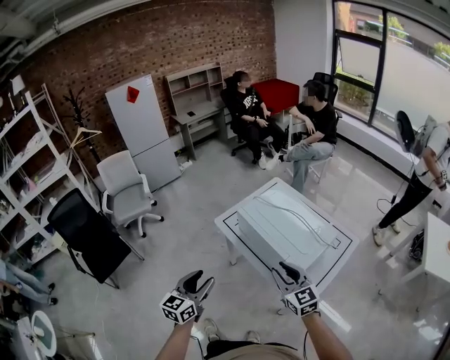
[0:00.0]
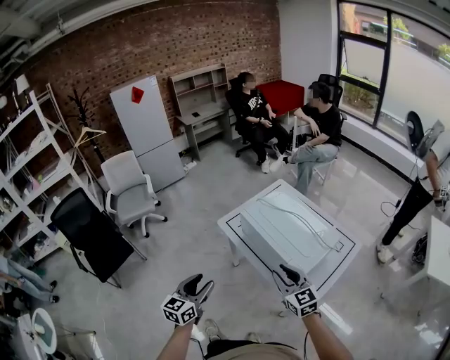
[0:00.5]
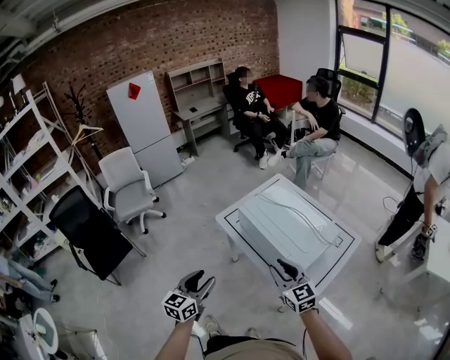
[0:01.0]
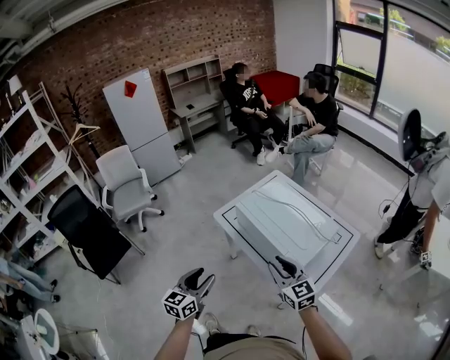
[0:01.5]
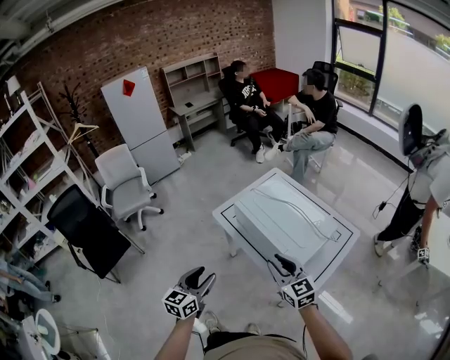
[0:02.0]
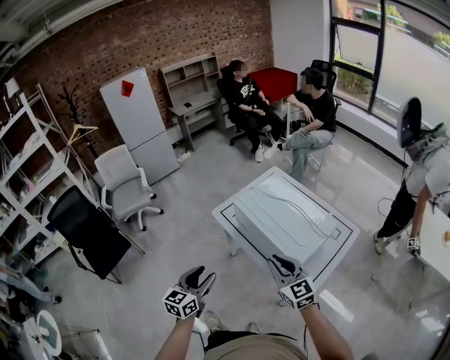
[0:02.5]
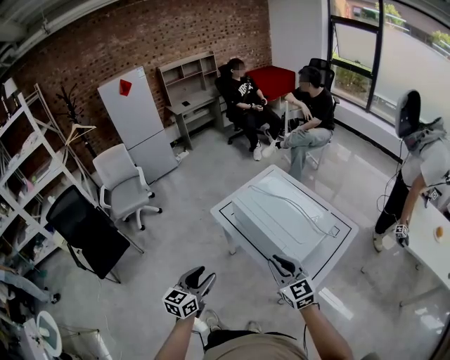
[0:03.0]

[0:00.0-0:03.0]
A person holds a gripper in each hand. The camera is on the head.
0:00.0 to 0:01.5: The grippers move only a little.
0:01.5 to 0:03.0: The two grippers keep their place.

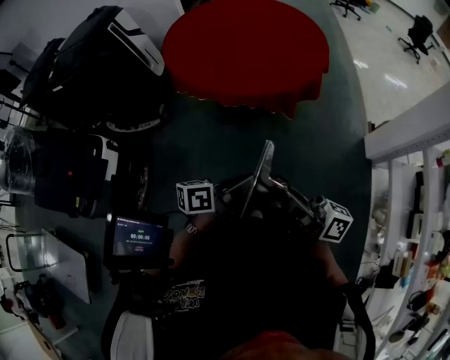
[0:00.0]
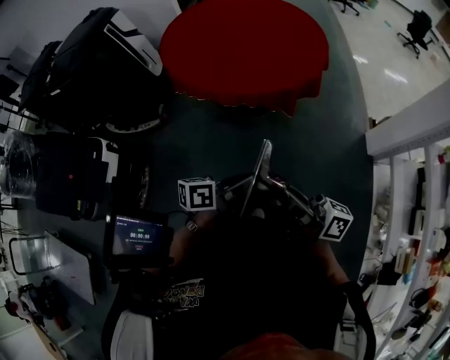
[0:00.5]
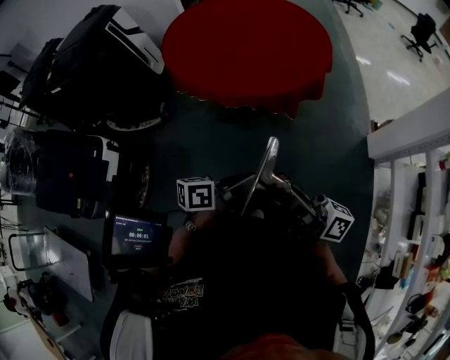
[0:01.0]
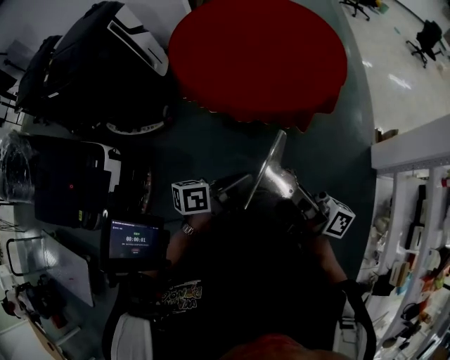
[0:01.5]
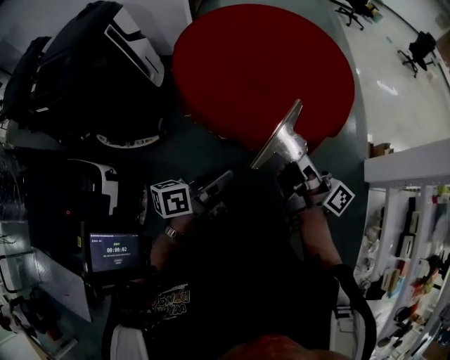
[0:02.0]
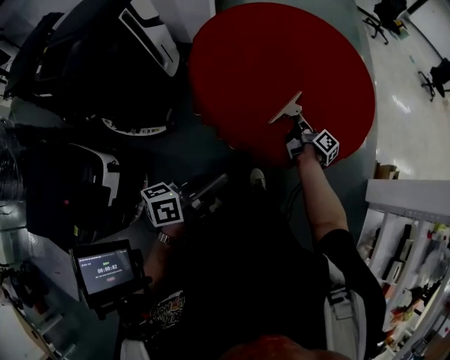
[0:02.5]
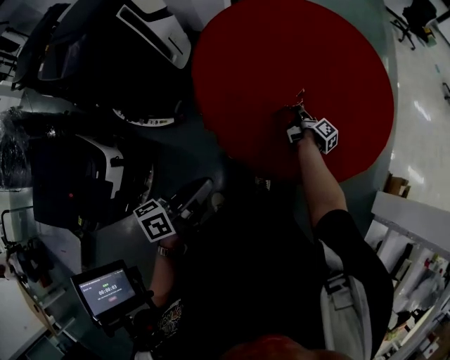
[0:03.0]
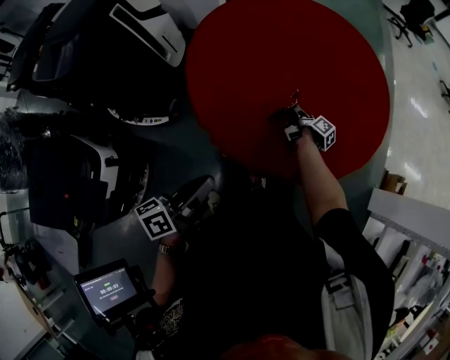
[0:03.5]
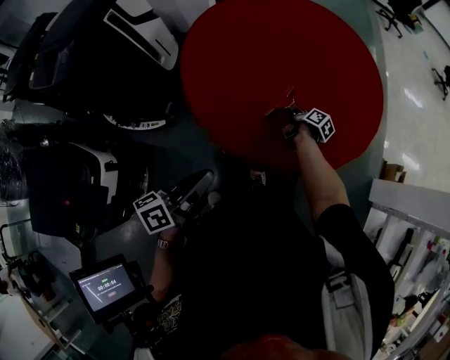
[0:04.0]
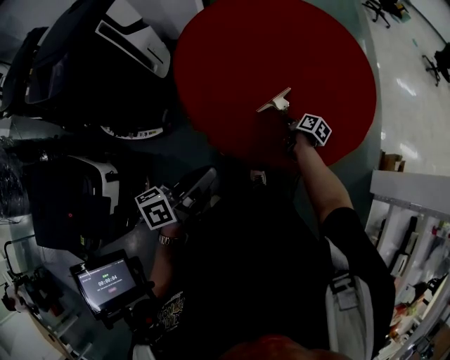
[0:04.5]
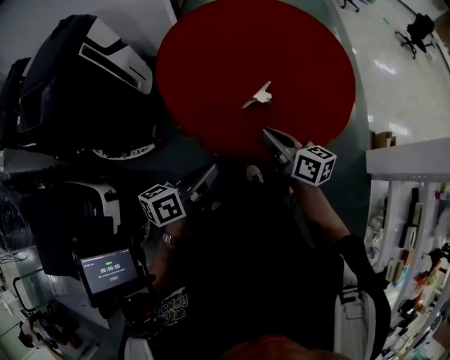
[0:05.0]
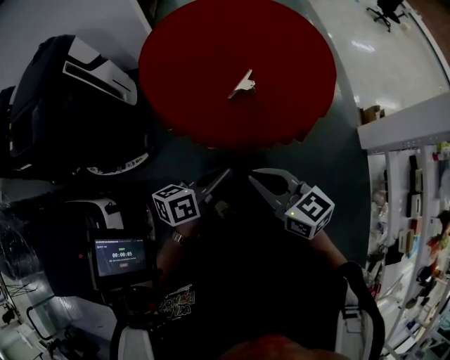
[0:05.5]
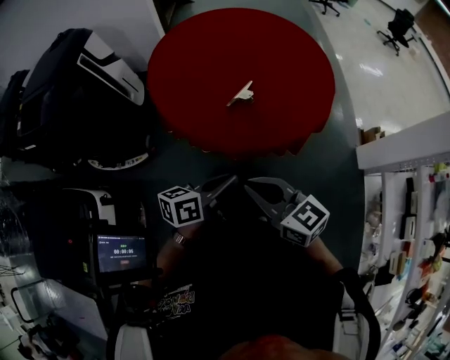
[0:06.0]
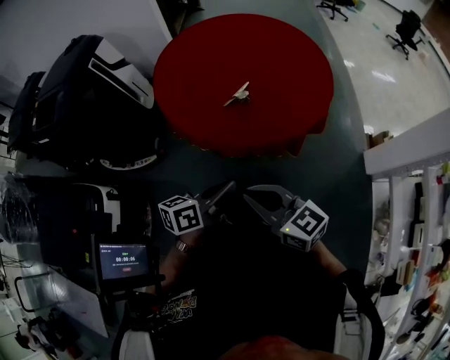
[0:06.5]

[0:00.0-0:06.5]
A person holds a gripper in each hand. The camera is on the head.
0:00.0 to 0:02.0: The left gripper moves to the left and forward, some 30 cm; the right gripper is displaced forward and to the left by approximately 35 cm.
0:02.0 to 0:04.5: The left gripper travels forward by approximately 10 cm, while the right gripper travels downward and forward by approximately 50 cm, and points its fingers some 60 degrees further downward.
0:04.5 to 0:06.5: The right gripper travels backward and upward by roughly 50 cm, rotates around the line of its fingers by some 60 degrees, counterclockwise from behind, and closes; the left gripper travels backward and to the right by roughly 10 cm.

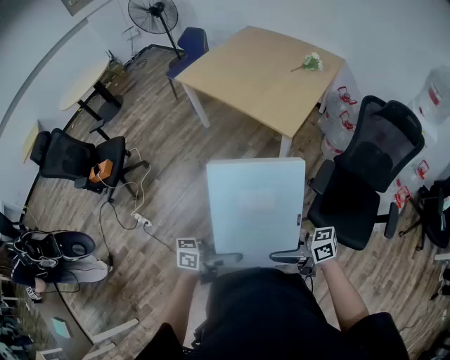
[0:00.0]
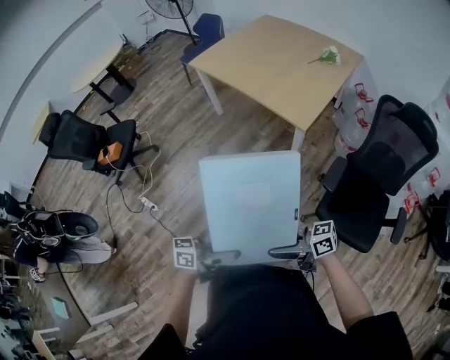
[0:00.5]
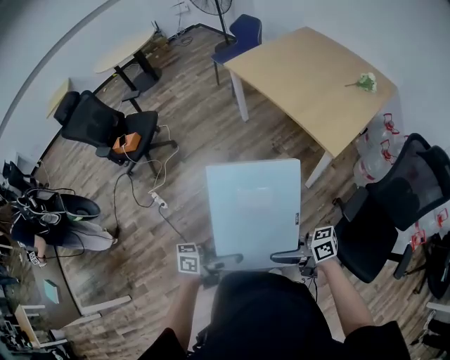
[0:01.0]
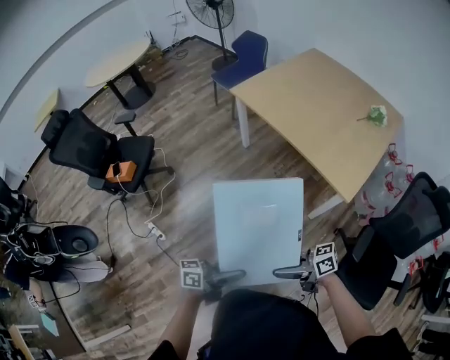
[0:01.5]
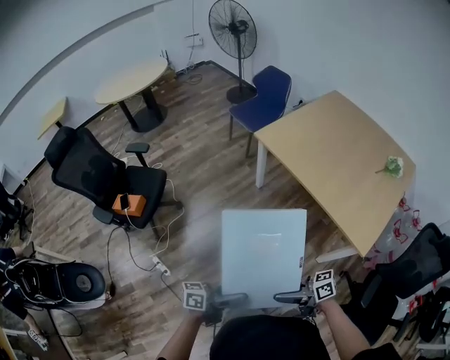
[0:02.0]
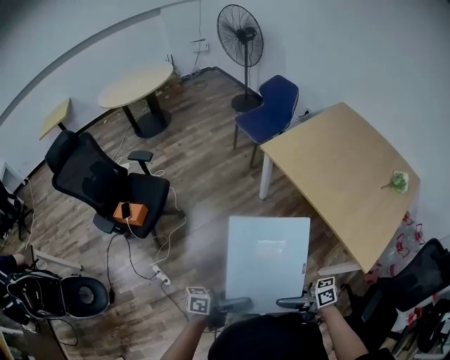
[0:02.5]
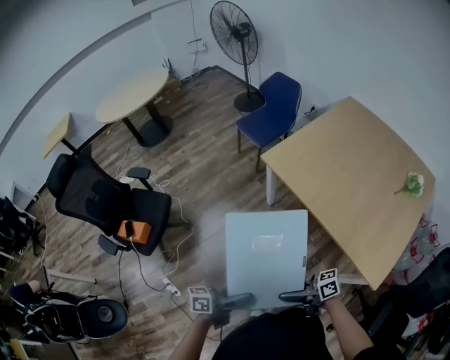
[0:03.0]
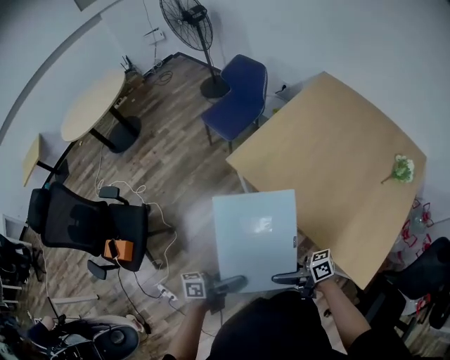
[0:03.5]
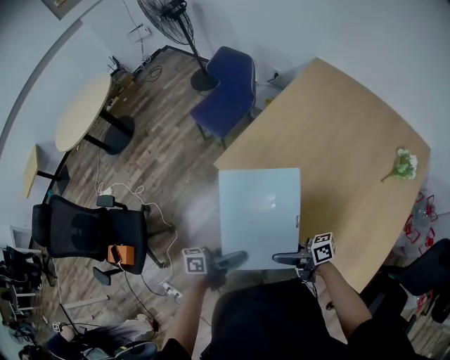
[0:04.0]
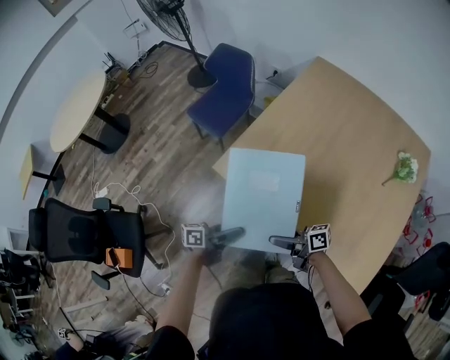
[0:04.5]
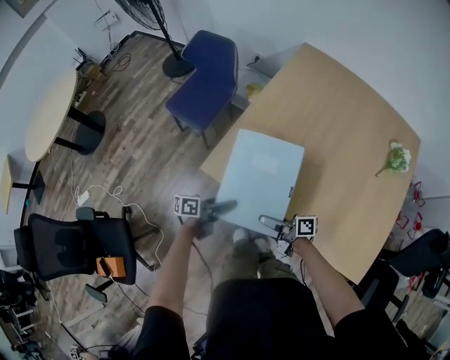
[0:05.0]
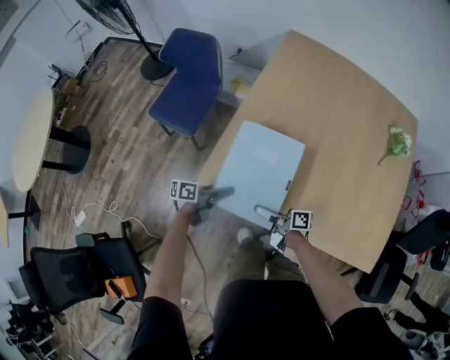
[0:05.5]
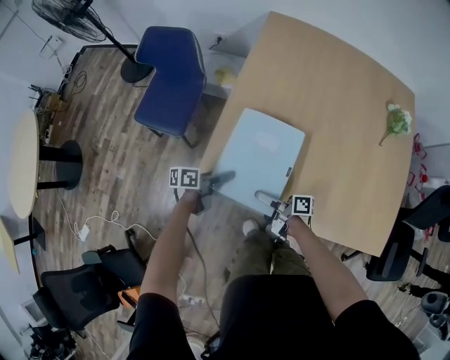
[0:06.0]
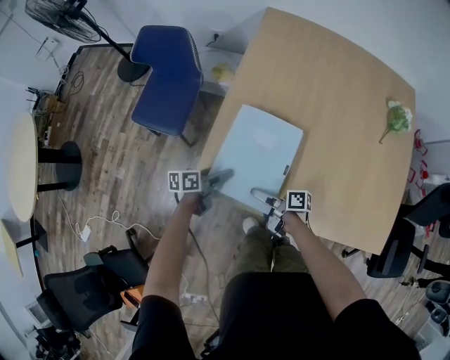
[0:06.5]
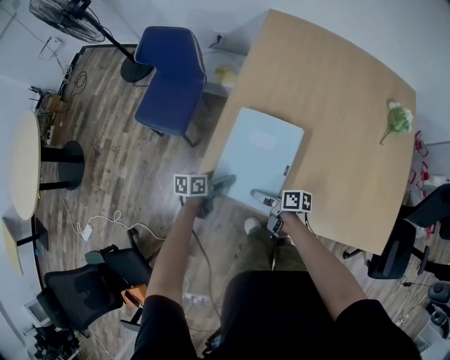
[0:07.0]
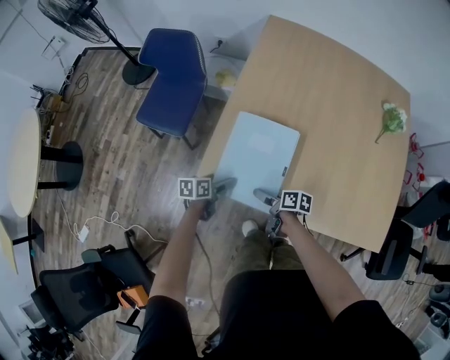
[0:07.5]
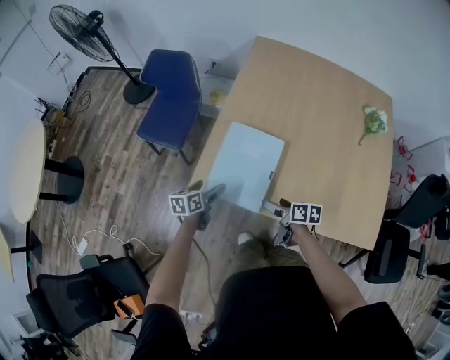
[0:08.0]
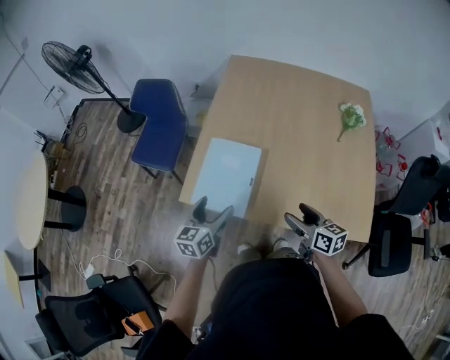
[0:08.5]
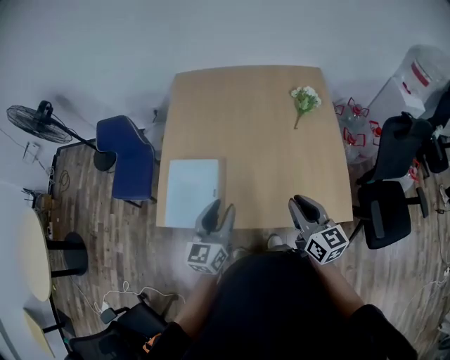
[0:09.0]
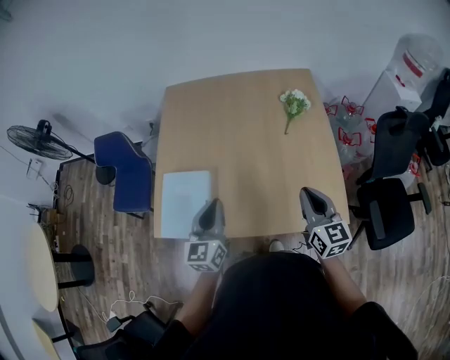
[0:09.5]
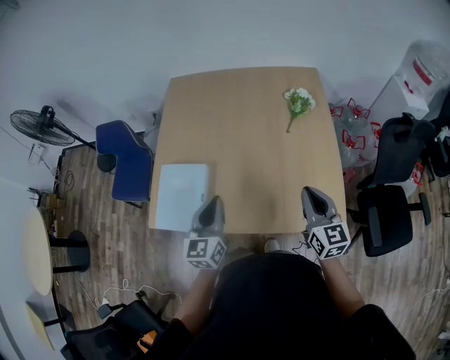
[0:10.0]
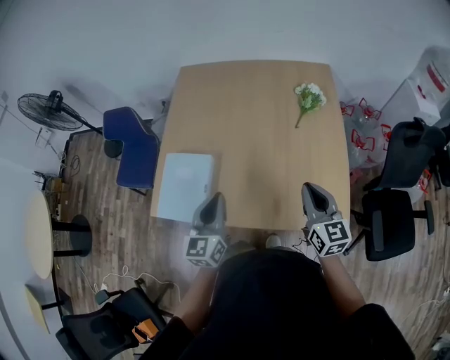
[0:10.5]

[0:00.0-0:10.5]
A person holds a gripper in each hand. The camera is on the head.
0:00.0 to 0:02.0: The two grippers travel together, approximately 60 cm. The left gripper swivels roughly 20 degrees.
0:02.0 to 0:04.0: The pair of grippers is taken approximately 60 cm.
0:04.0 to 0:06.5: The right gripper moves about 40 cm, and changes its angle by some 50 degrees, while the left gripper ends up roughly 50 cm from where it was, and changes its angle by roughly 30 degrees.
0:06.5 to 0:08.5: The right gripper travels upward, to the right and backward by approximately 35 cm, and rotates around the line of its fingers by approximately 40 degrees, counterclockwise from behind, while the left gripper goes approximately 30 cm upward and backward, and swivels some 40 degrees.
0:08.5 to 0:10.5: Both grippers travel together to the right, approximately 30 cm. The left gripper closes its fingers. Meanwhile the right gripper rotates roughly 40 degrees, and closes up.

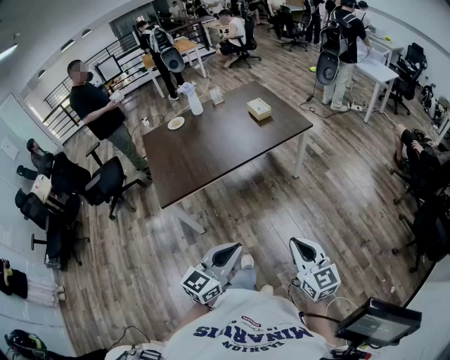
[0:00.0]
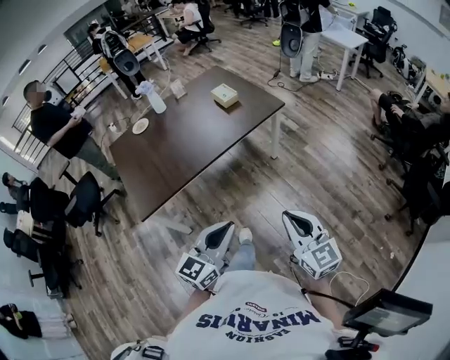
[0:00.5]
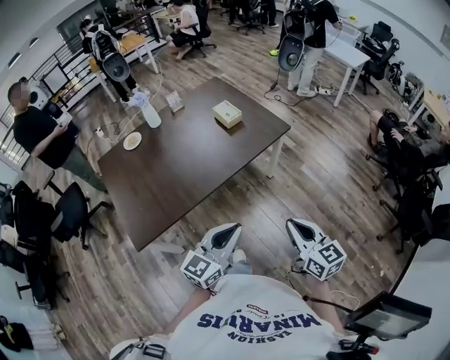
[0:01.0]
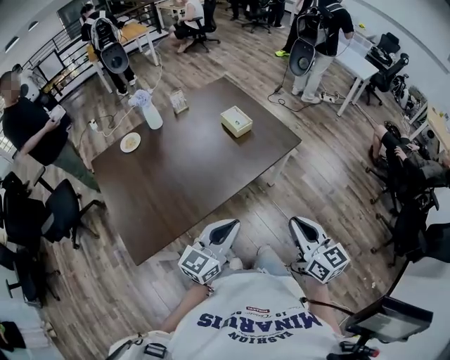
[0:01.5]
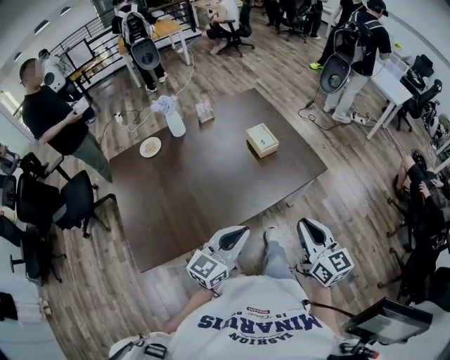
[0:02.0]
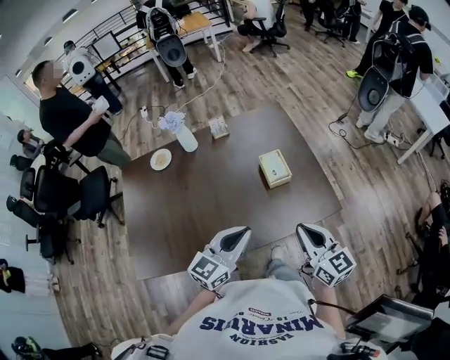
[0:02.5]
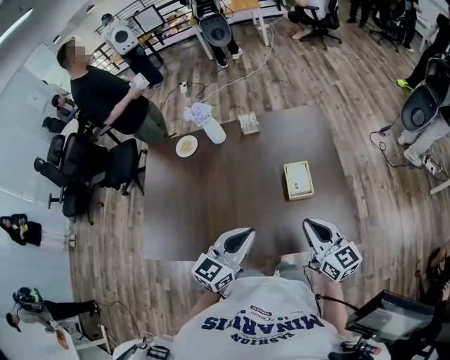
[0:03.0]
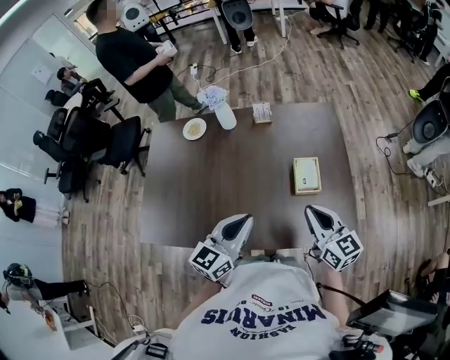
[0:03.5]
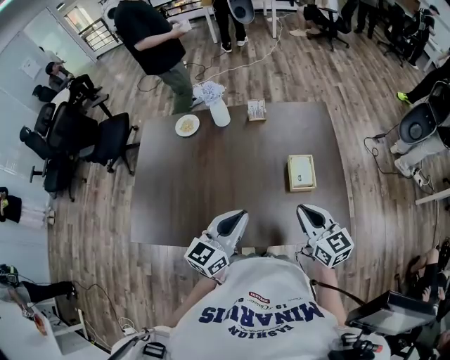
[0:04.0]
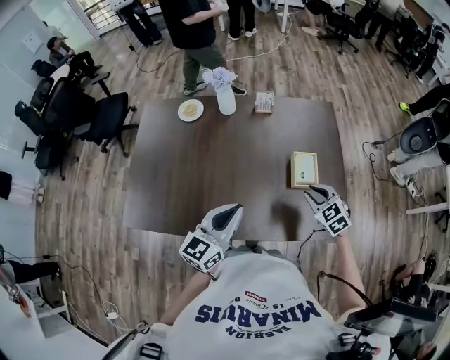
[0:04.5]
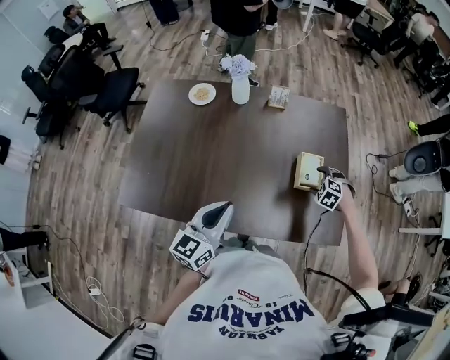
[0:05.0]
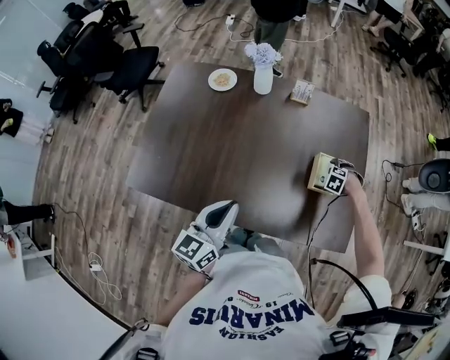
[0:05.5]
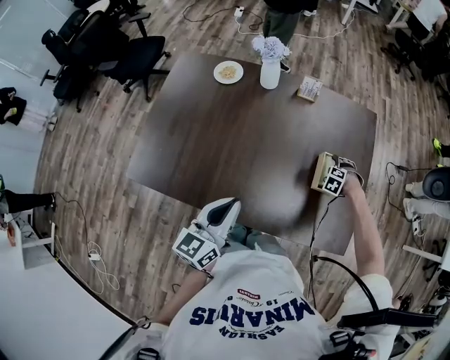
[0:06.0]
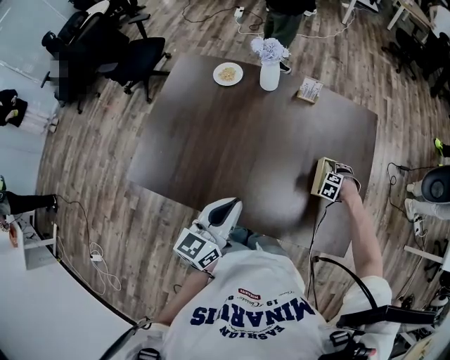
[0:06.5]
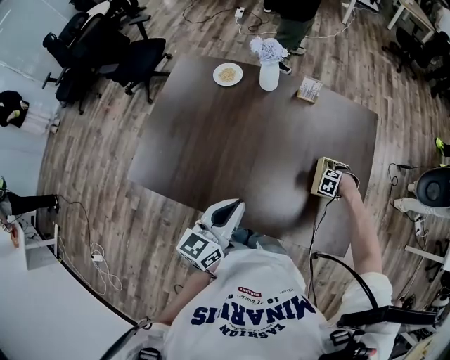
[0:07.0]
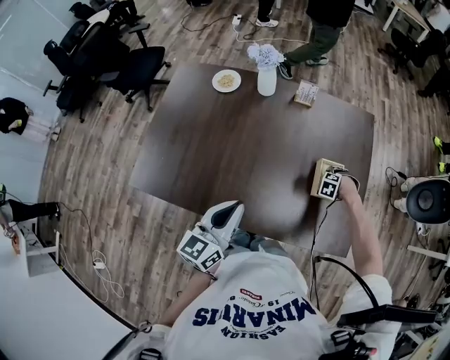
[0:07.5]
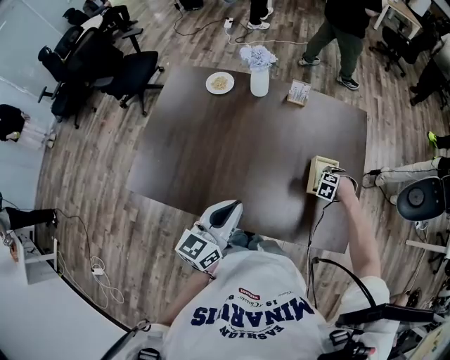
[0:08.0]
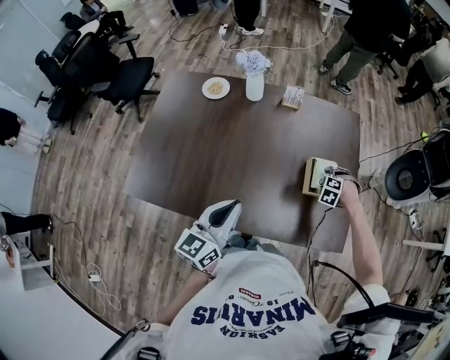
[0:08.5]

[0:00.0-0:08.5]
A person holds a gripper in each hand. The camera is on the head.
0:00.0 to 0:02.0: The two grippers travel together, forward, some 50 cm.
0:02.0 to 0:04.0: The right gripper moves some 35 cm, and changes its angle by some 40 degrees. Meanwhile the left gripper ends up roughly 25 cm from where it was, and rotates approximately 30 degrees.
0:04.0 to 0:06.5: The left gripper changes place by approximately 10 cm, and swivels approximately 20 degrees, while the right gripper travels downward by roughly 35 cm, angles its fingers downward, by about 70 degrees, and opens up.
0:06.5 to 0:08.5: The right gripper travels upward by approximately 10 cm, and closes its fingers.
